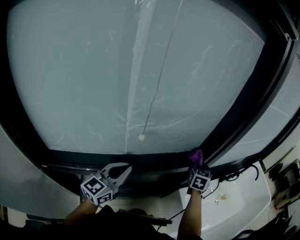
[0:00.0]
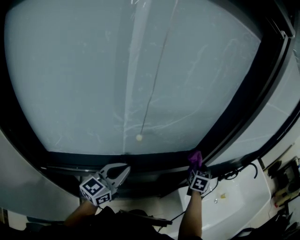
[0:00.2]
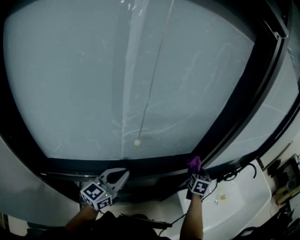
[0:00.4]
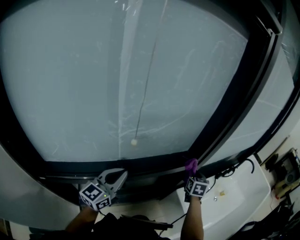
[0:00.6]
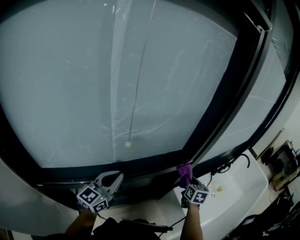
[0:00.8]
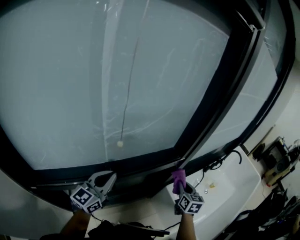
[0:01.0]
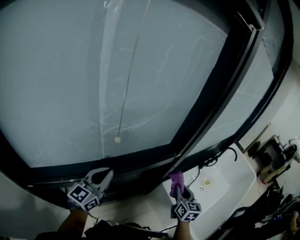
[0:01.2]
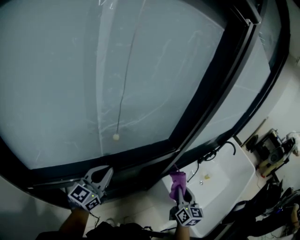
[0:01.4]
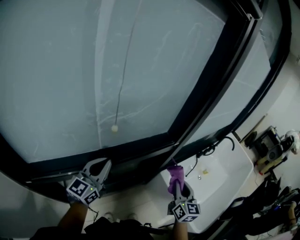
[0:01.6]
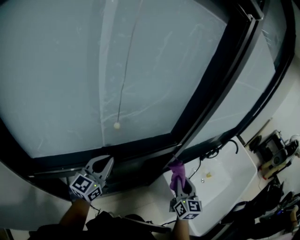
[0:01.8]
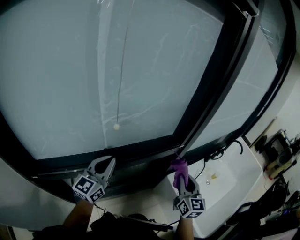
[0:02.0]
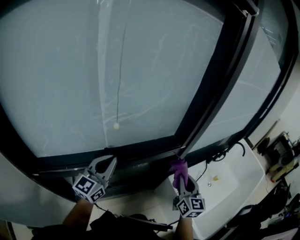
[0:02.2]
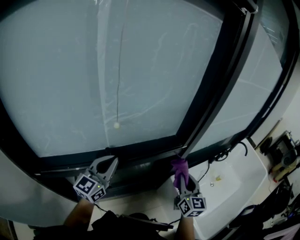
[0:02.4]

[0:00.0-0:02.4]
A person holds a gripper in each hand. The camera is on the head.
0:00.0 to 0:01.2: The right gripper travels backward by about 20 cm, and changes its angle by approximately 20 degrees.
0:01.2 to 0:02.4: The right gripper is displaced upward by roughly 5 cm.

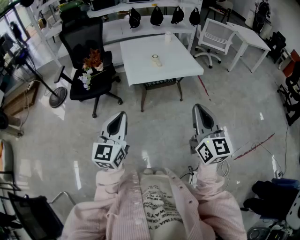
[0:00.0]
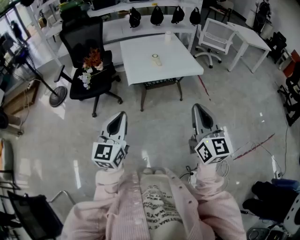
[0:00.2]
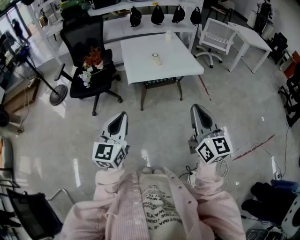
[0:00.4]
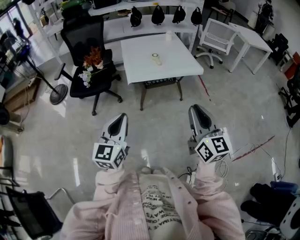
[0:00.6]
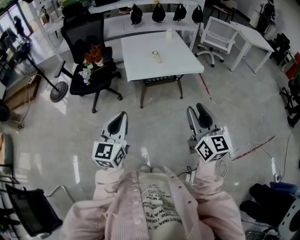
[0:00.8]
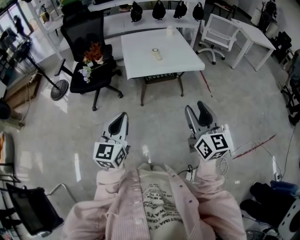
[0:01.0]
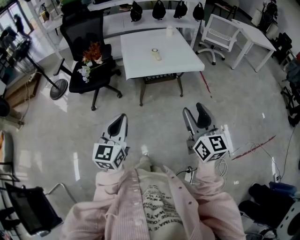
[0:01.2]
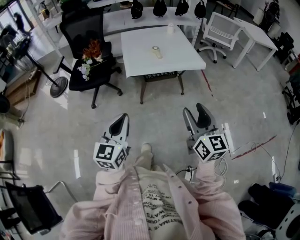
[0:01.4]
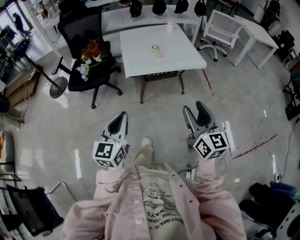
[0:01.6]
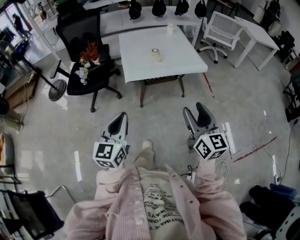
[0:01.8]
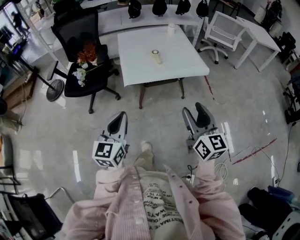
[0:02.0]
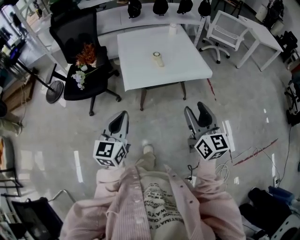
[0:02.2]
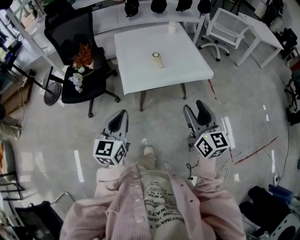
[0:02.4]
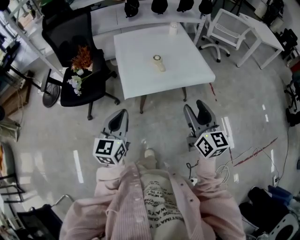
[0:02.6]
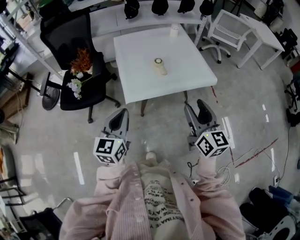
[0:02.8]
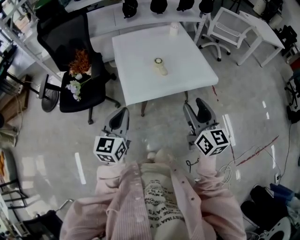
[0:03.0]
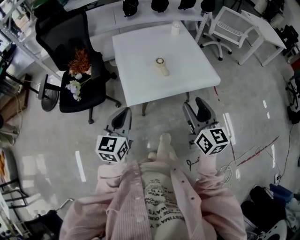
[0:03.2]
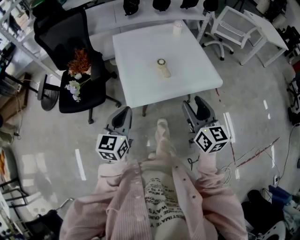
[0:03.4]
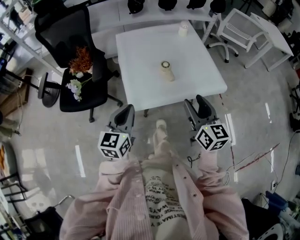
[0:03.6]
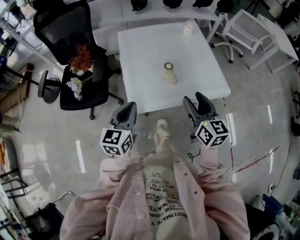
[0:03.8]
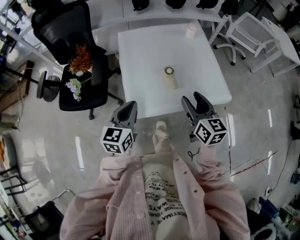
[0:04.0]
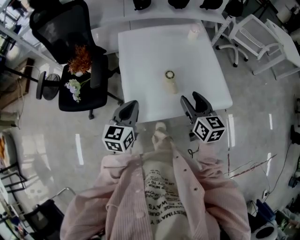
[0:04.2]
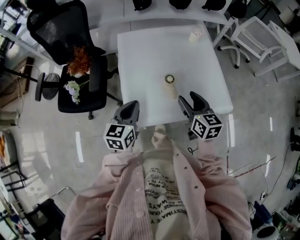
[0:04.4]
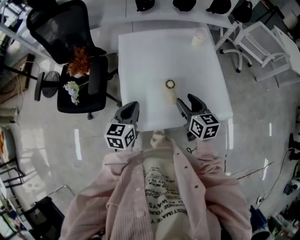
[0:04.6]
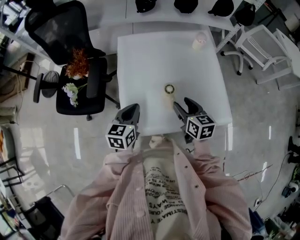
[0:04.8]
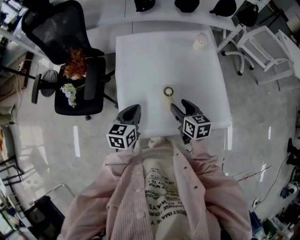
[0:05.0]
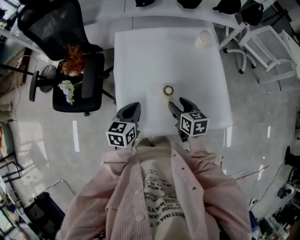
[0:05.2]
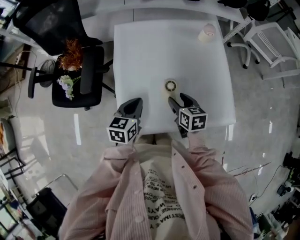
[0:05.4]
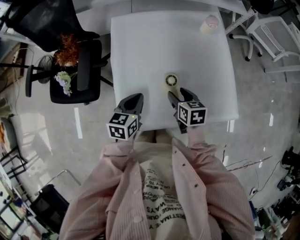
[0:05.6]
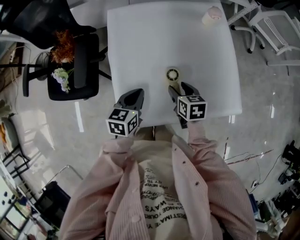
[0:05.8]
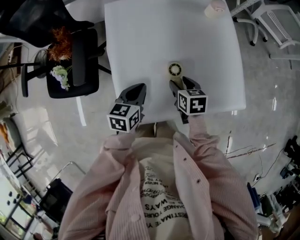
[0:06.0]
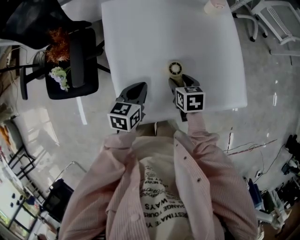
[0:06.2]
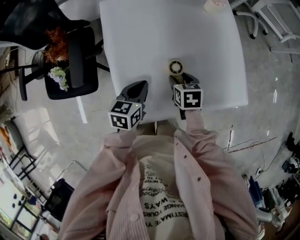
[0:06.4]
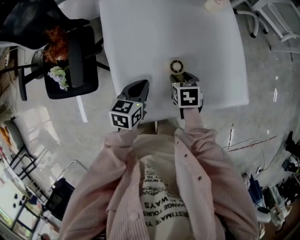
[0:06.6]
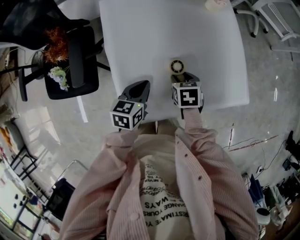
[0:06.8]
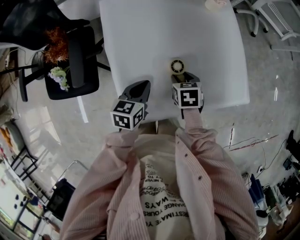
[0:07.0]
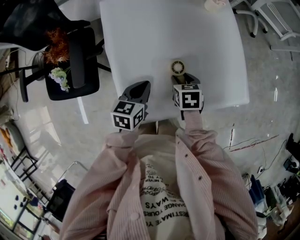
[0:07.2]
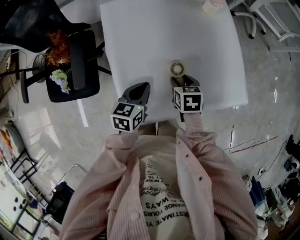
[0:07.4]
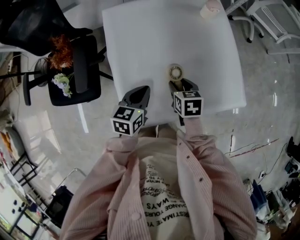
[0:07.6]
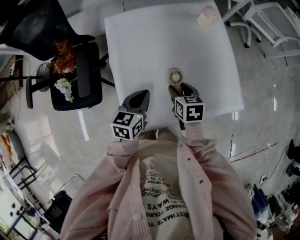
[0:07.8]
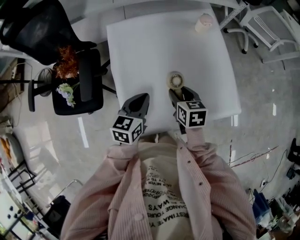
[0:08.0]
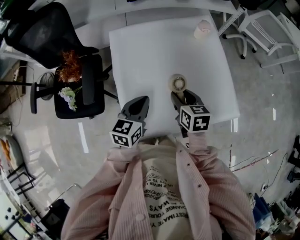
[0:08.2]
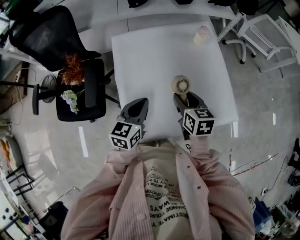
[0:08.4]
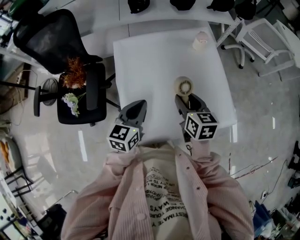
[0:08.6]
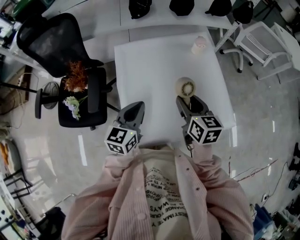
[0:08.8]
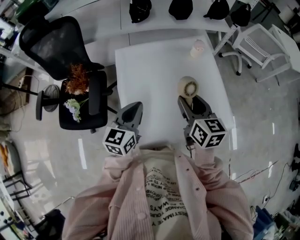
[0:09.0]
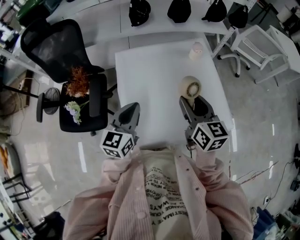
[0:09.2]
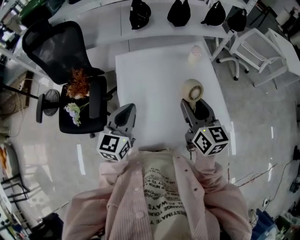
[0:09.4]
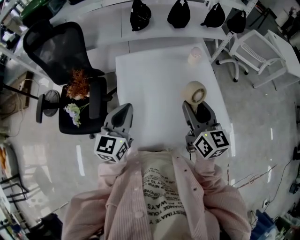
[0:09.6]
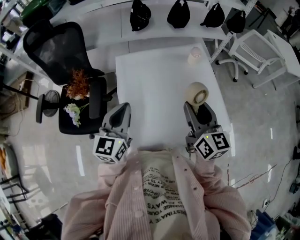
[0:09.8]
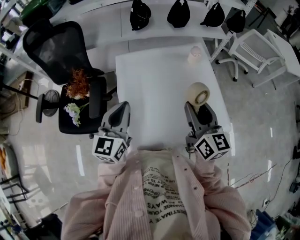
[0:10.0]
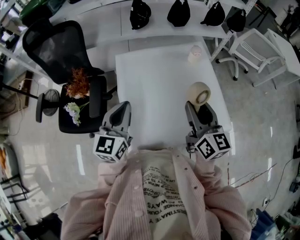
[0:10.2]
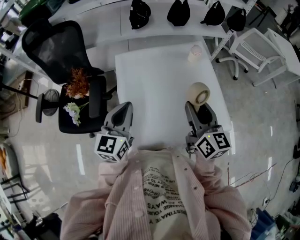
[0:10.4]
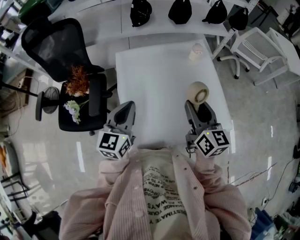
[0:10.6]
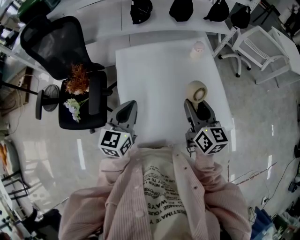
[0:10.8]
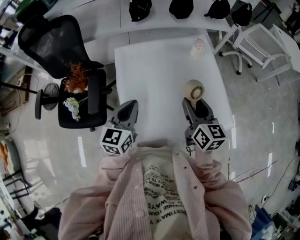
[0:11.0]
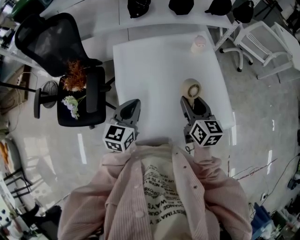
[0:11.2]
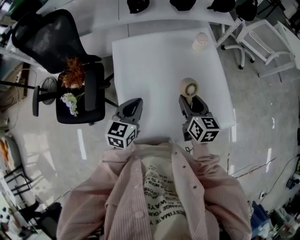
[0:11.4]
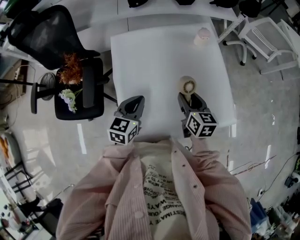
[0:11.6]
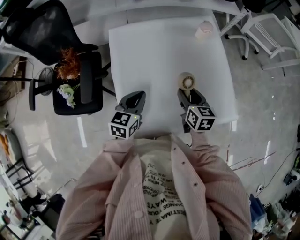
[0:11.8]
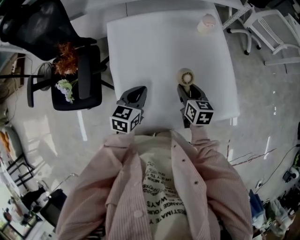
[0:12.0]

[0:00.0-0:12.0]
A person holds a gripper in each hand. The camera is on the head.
0:00.0 to 0:01.6: The grippers both shift downward by approximately 5 cm. The right gripper opens.
0:01.6 to 0:03.0: The two grippers go approximately 30 cm forward.
0:03.0 to 0:04.4: The left gripper heads forward, covering approximately 25 cm, while the right gripper is displaced forward and downward by approximately 30 cm, and swivels roughly 20 degrees.
0:04.4 to 0:06.0: Both grippers move downward and forward, roughly 20 cm. The right gripper swivels roughly 30 degrees. Meanwhile the left gripper swivels some 20 degrees.
0:06.0 to 0:07.6: The grippers make only small movements.
0:07.6 to 0:09.0: The grippers both shift upward by some 20 cm. The right gripper tips its fingers upward by about 30 degrees; the left gripper rotates some 20 degrees.
0:09.0 to 0:10.4: Both grippers travel together upward, about 5 cm.
0:10.4 to 0:12.0: The grippers both shift downward by some 20 cm. The left gripper rotates about 30 degrees; the right gripper tips its fingers downward by some 30 degrees.

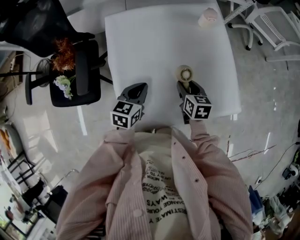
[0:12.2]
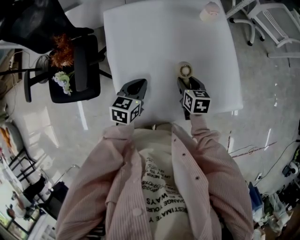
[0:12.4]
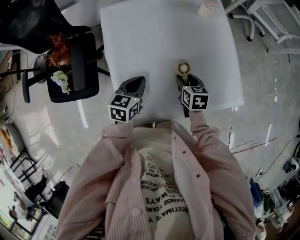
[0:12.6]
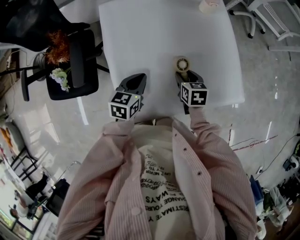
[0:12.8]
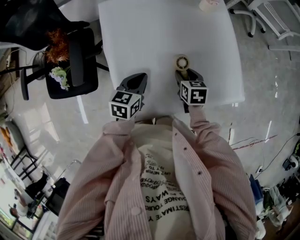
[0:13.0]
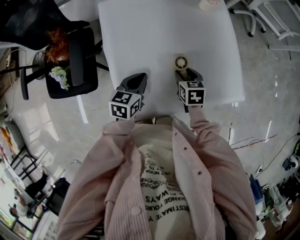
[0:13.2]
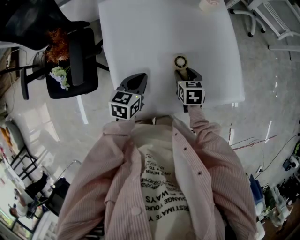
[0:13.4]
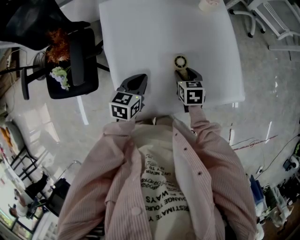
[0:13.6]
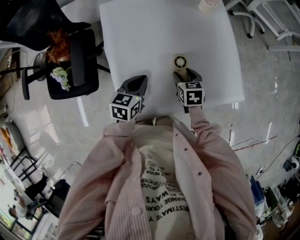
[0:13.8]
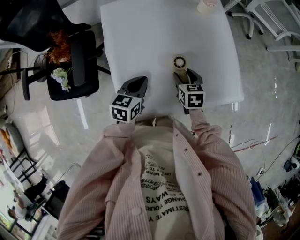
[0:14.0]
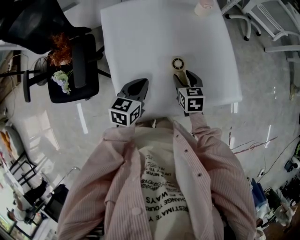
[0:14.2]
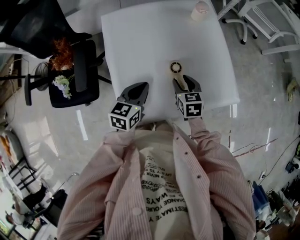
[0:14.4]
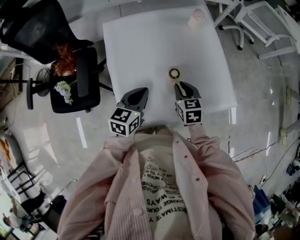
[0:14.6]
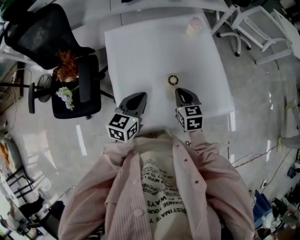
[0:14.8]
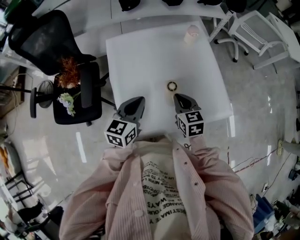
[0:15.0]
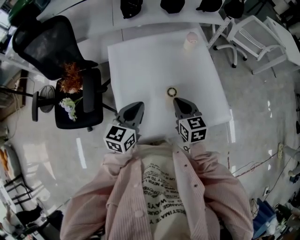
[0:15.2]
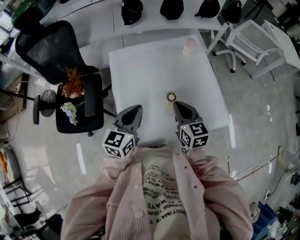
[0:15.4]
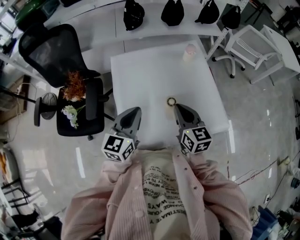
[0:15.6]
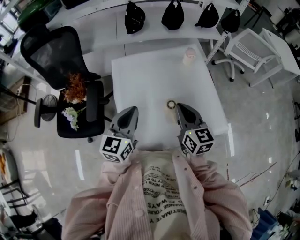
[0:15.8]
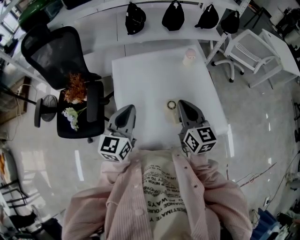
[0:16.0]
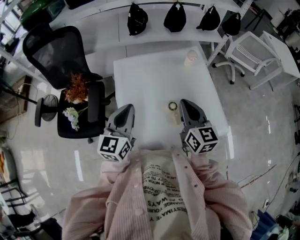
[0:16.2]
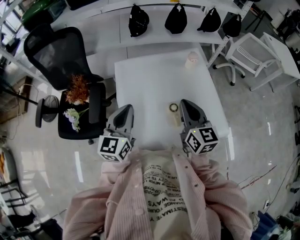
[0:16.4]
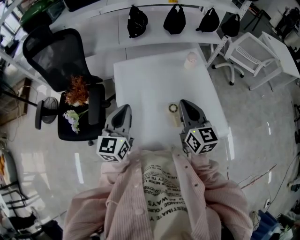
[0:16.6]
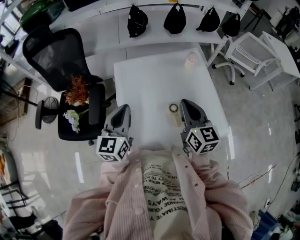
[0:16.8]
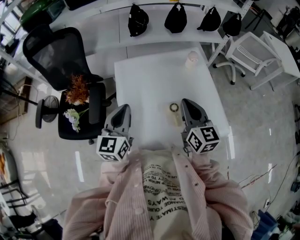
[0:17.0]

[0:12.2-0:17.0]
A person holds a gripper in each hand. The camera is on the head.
0:12.2 to 0:13.8: The grippers stay close to where they were, moving slightly.
0:13.8 to 0:15.4: The two grippers go roughly 20 cm upward. The right gripper points its fingers roughly 30 degrees further upward, and closes its fingers; the left gripper changes its angle by some 30 degrees.
0:15.4 to 0:17.0: The left gripper goes roughly 10 cm to the left and upward. The right gripper travels upward by roughly 10 cm.

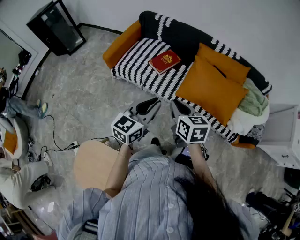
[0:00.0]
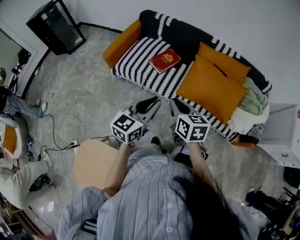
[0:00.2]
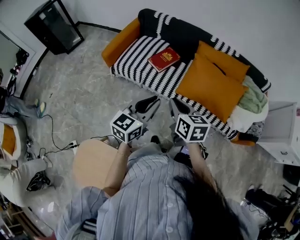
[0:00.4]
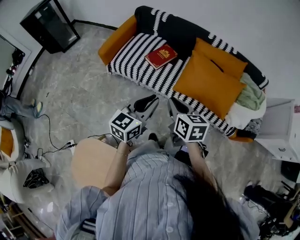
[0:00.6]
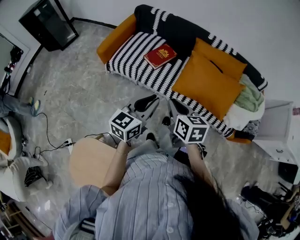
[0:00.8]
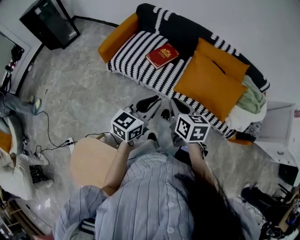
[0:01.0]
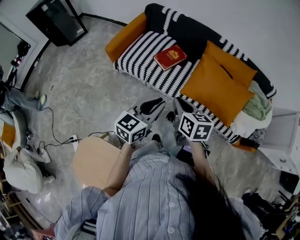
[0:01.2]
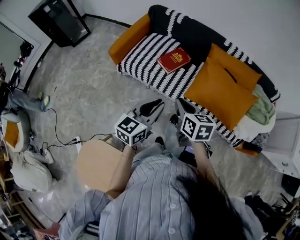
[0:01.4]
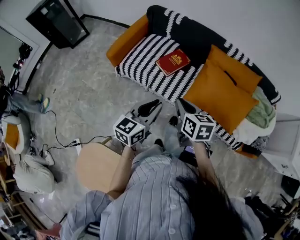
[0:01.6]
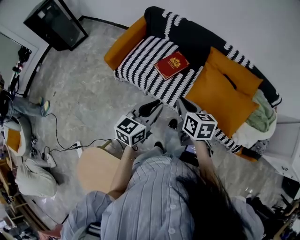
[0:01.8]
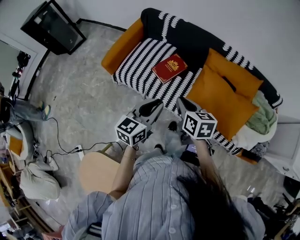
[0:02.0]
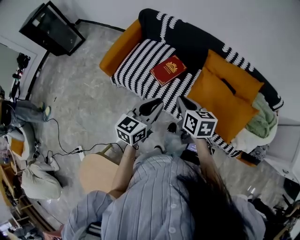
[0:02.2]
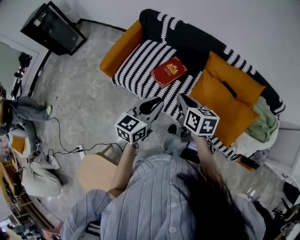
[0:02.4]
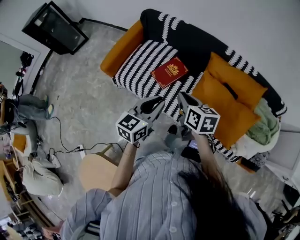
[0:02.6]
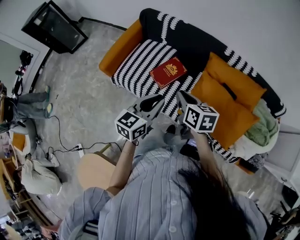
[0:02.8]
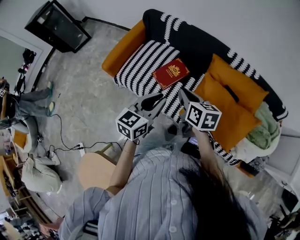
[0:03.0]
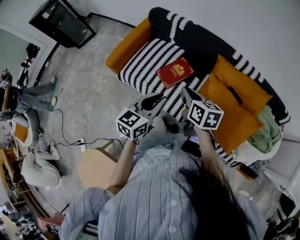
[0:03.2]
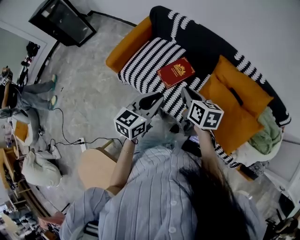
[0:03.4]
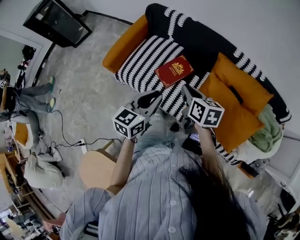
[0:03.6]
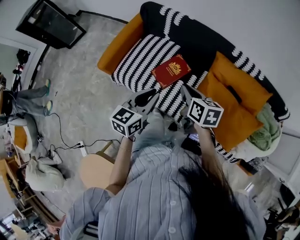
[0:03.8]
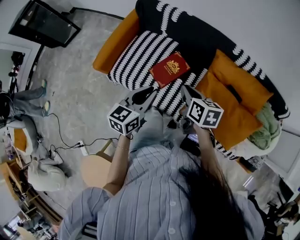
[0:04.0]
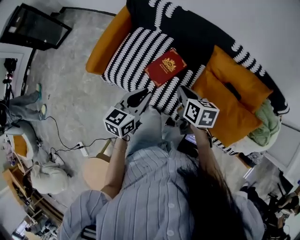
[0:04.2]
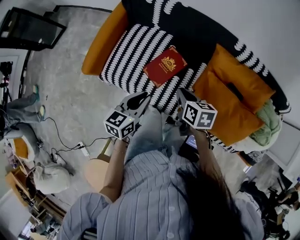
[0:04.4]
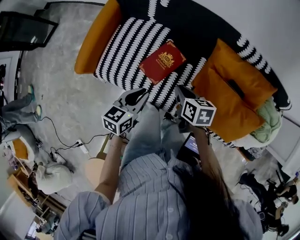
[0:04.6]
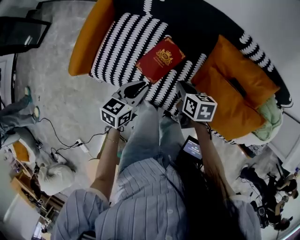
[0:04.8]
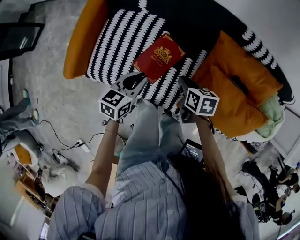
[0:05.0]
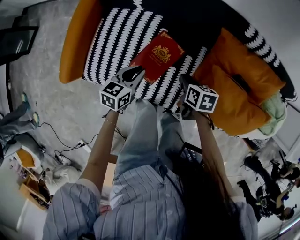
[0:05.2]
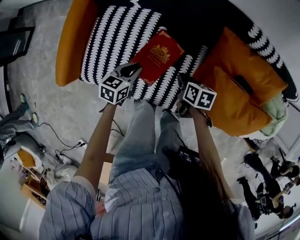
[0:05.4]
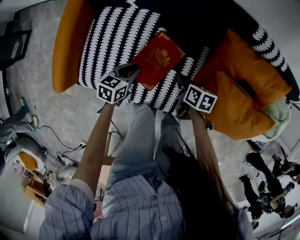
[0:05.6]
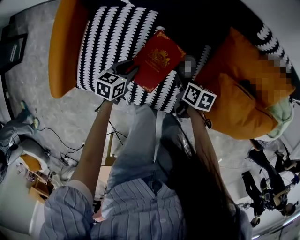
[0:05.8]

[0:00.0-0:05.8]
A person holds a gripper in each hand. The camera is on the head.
0:00.0 to 0:01.4: The left gripper changes place by approximately 5 cm; the right gripper heads forward, covering about 5 cm.
0:01.4 to 0:02.8: Both grippers travel together forward, roughly 20 cm.
0:02.8 to 0:04.4: The right gripper goes about 20 cm forward and downward. Meanwhile the left gripper travels forward, downward and to the left by approximately 20 cm.
0:04.4 to 0:05.8: The right gripper moves downward, approximately 25 cm, and turns by about 30 degrees, while the left gripper goes approximately 35 cm downward and forward, and turns by about 30 degrees.
